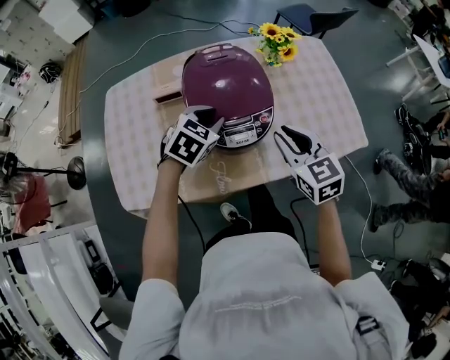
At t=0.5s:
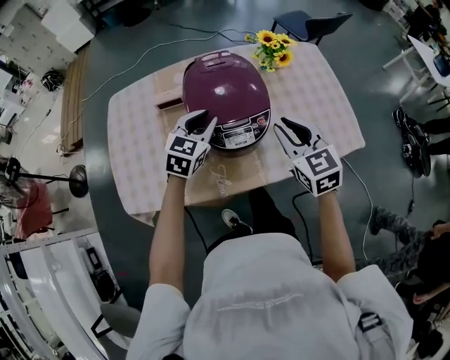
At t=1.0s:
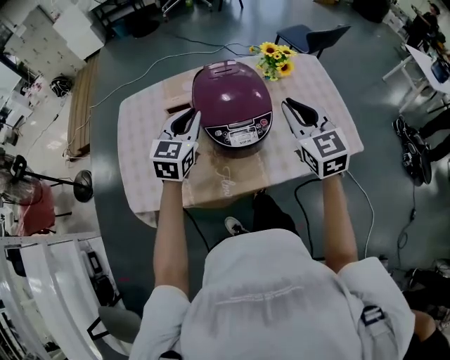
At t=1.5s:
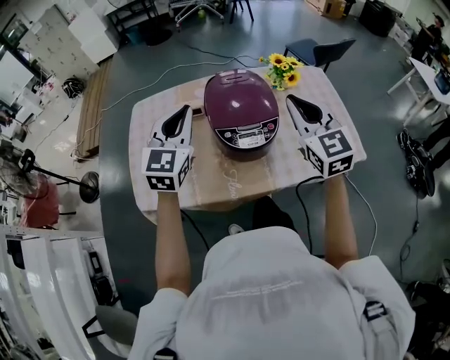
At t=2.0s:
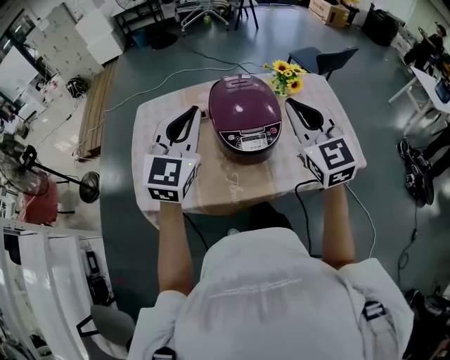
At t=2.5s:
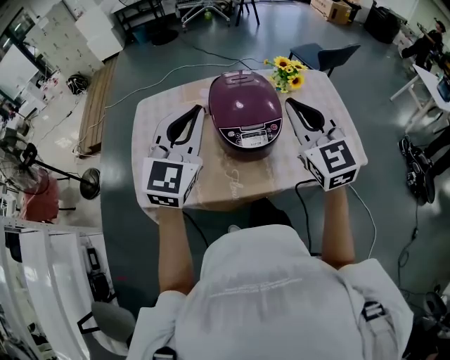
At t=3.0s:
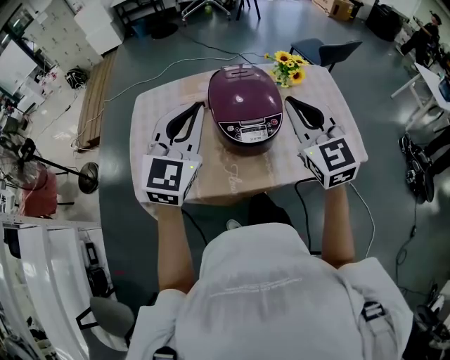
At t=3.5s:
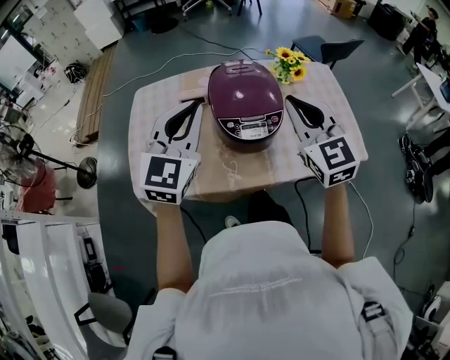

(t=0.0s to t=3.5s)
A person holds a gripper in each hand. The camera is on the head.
t=0.0s - t=2.0s: The grippers both shift upward by approximately 20 cm. The left gripper tilts its fingers some 40 degrees upward, while the right gripper swivels approximately 30 degrees.
t=2.0s - t=3.5s: The grippers stay close to where they were, moving slightly.

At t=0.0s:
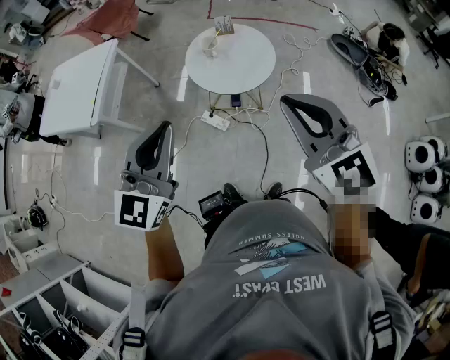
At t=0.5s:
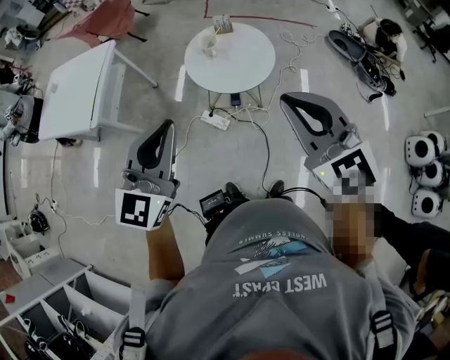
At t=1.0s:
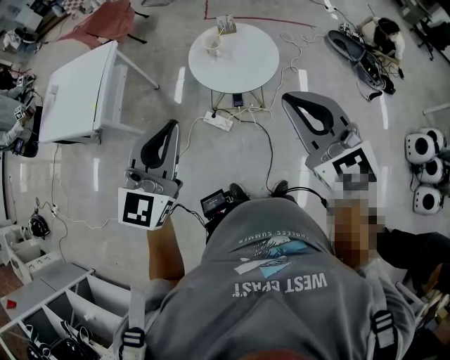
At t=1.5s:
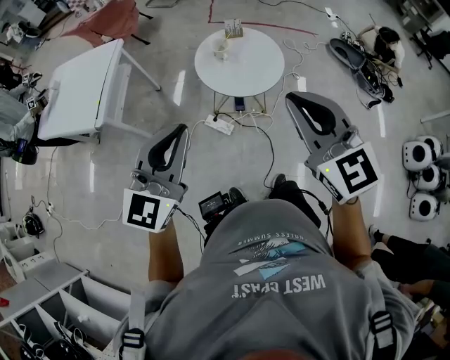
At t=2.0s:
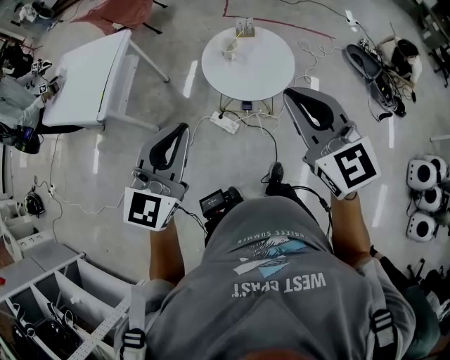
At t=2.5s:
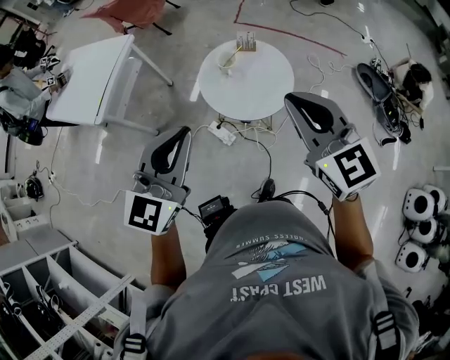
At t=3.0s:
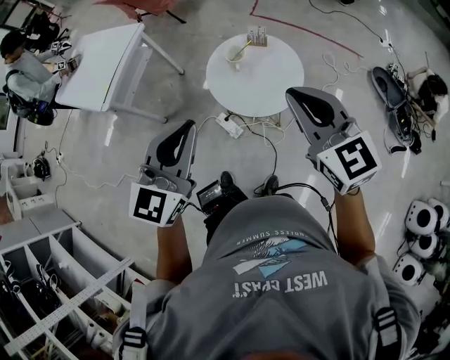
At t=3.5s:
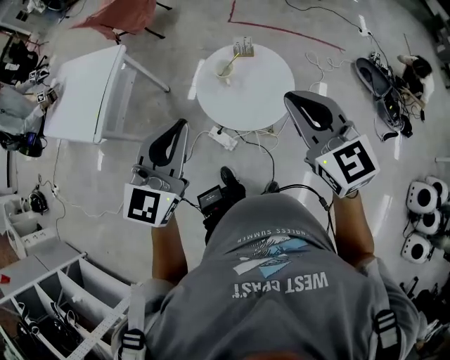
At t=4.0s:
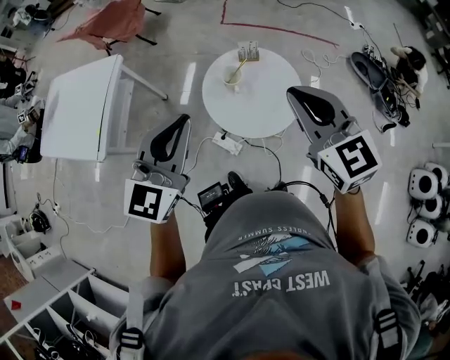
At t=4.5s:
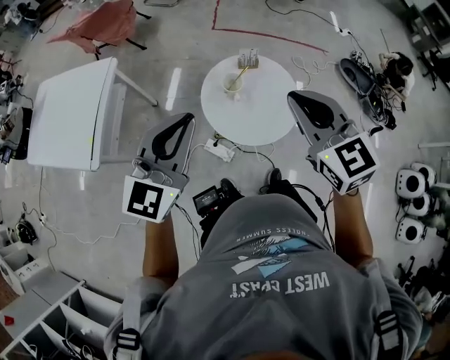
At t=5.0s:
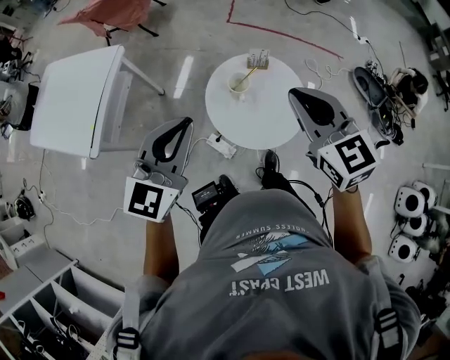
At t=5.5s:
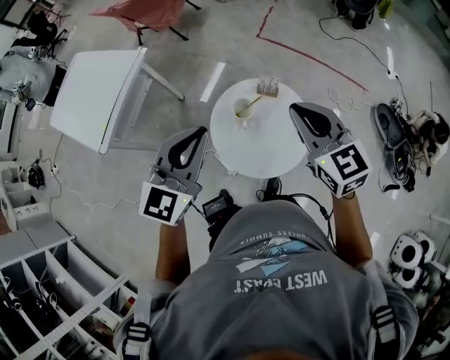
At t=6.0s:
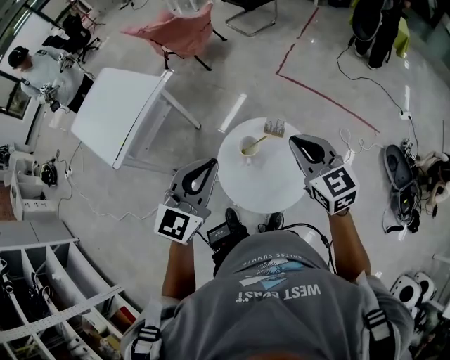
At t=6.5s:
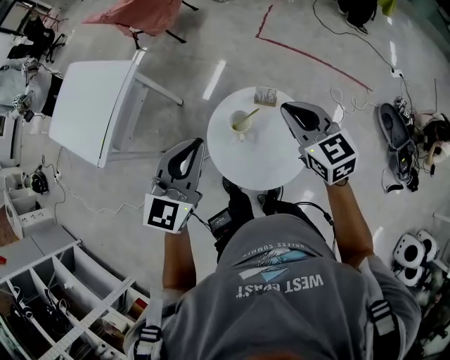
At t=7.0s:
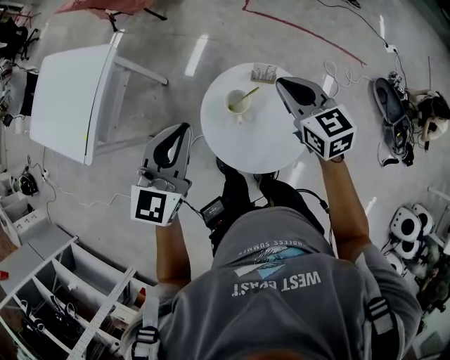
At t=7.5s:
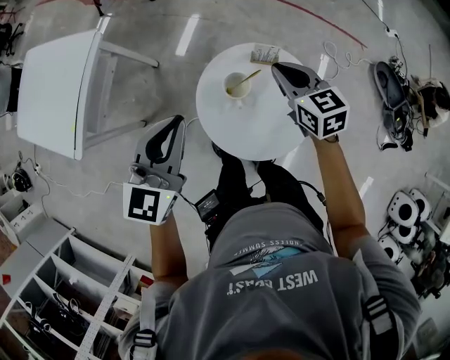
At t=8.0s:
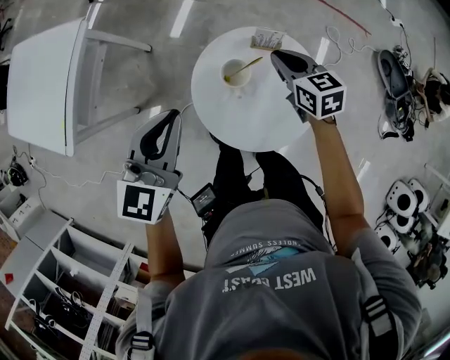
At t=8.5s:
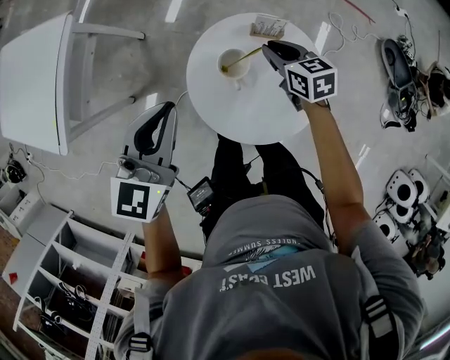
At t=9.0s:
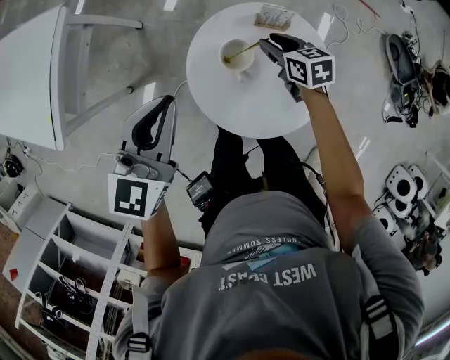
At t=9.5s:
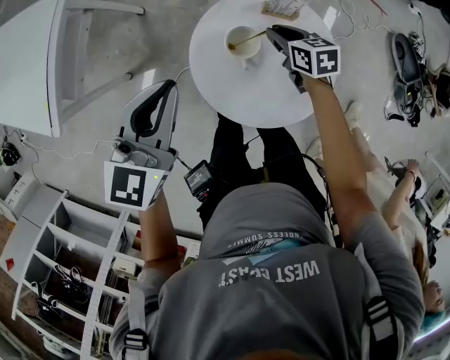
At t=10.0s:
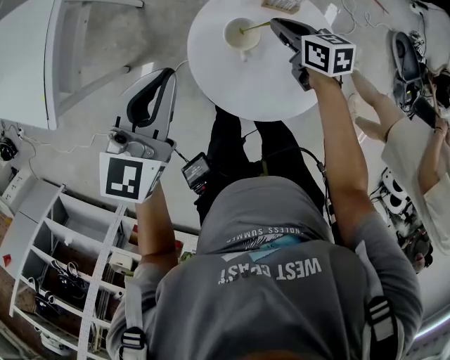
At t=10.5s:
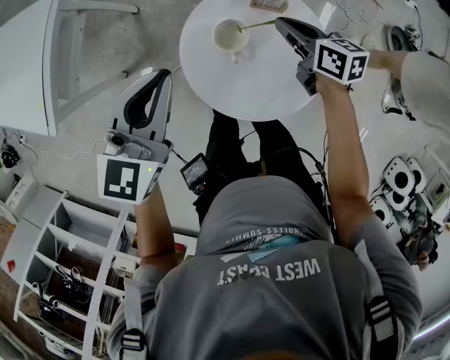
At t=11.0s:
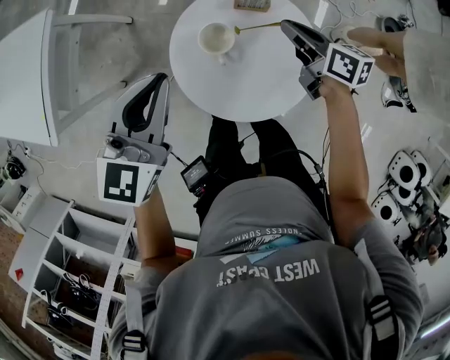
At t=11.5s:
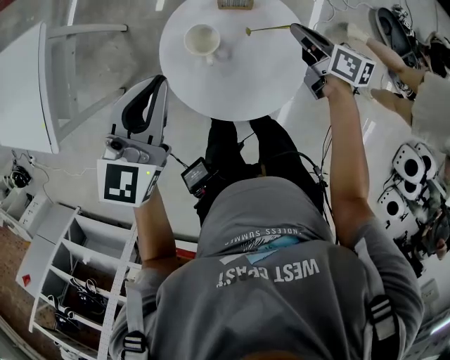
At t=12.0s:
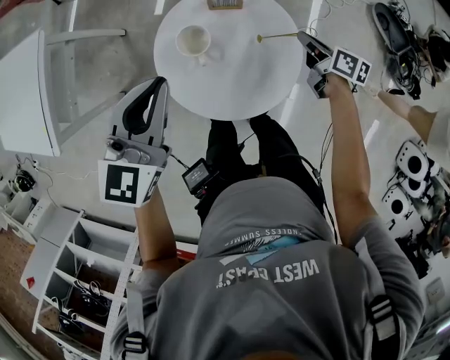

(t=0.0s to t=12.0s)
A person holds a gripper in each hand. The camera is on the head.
t=0.0s - t=2.0s: The right gripper goes some 5 cm forward.
t=2.0s - t=4.0s: Both grippers travel together forward, roughly 20 cm.
t=4.0s - t=6.0s: The right gripper heads forward and downward, covering approximately 20 cm, and rotates approximately 20 degrees; the left gripper travels forward and to the right by approximately 15 cm.
t=6.0s - t=8.0s: The left gripper moves downward and to the left, roughly 10 cm, while the right gripper goes some 20 cm downward and forward, and swivels approximately 30 degrees.
t=8.0s - t=10.0s: The right gripper shifts some 5 cm downward, and opens, then closes once more.
t=10.0s - t=12.0s: The right gripper travels to the right by approximately 20 cm, and turns by approximately 30 degrees, while the left gripper is displaced to the right by approximately 5 cm.

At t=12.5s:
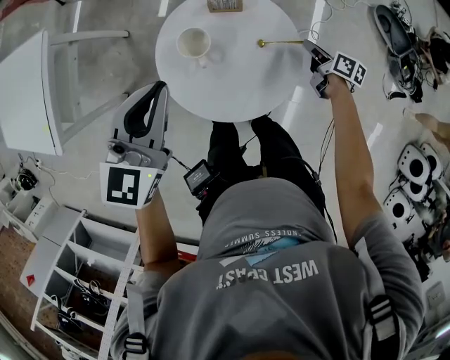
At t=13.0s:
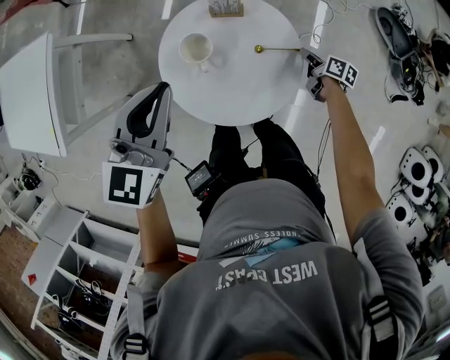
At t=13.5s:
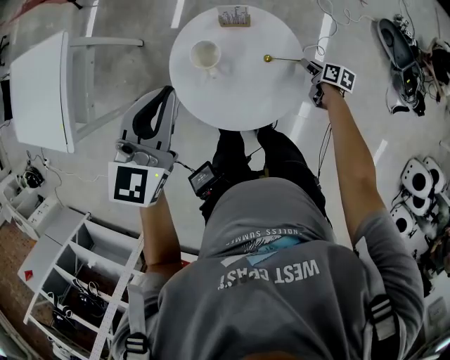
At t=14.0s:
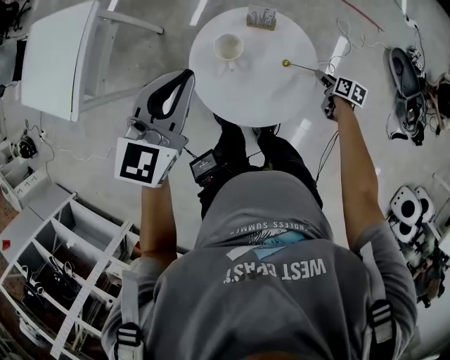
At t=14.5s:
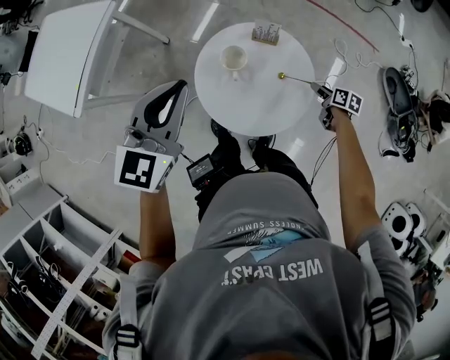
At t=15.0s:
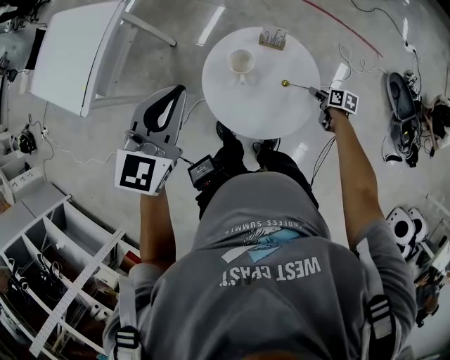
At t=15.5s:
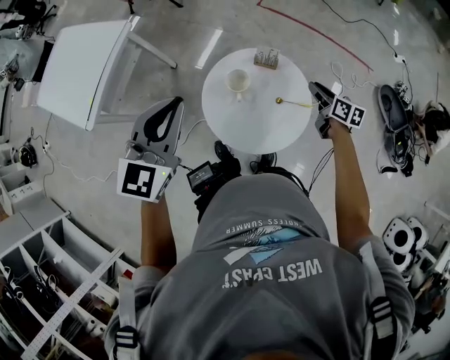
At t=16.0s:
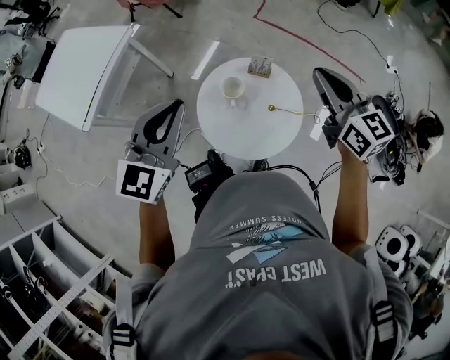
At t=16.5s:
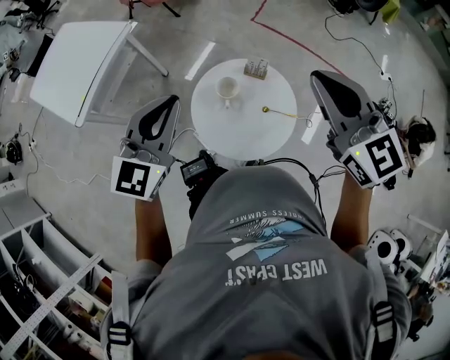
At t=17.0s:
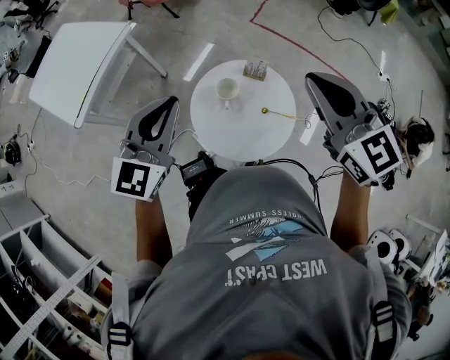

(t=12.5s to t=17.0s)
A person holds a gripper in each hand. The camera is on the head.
t=12.5s - t=14.5s: The left gripper moves upward, about 5 cm. Meanwhile the right gripper swivels about 20 degrees, and opens up.
t=14.5s - t=17.0s: The right gripper is displaced upward by some 50 cm, rotates around the line of its fingers by approximately 70 degrees, counterclockwise from behind, and closes up.

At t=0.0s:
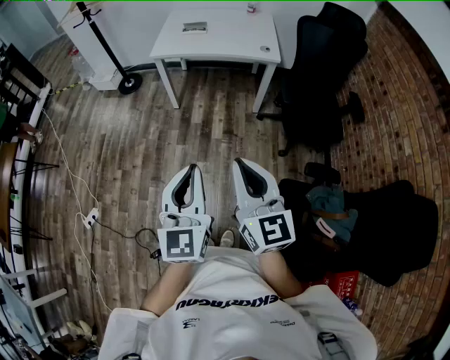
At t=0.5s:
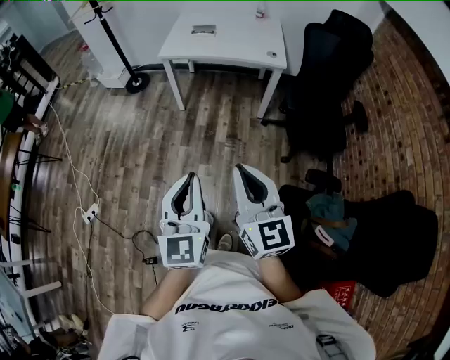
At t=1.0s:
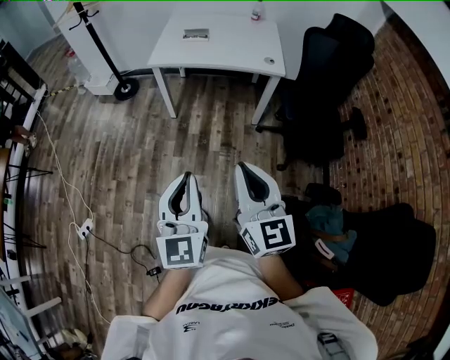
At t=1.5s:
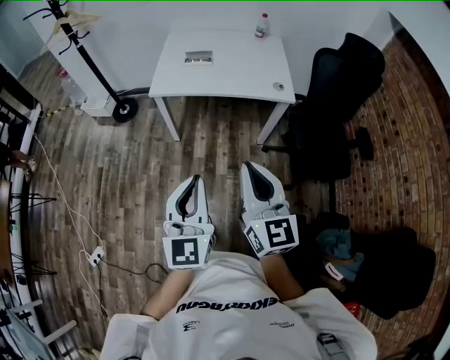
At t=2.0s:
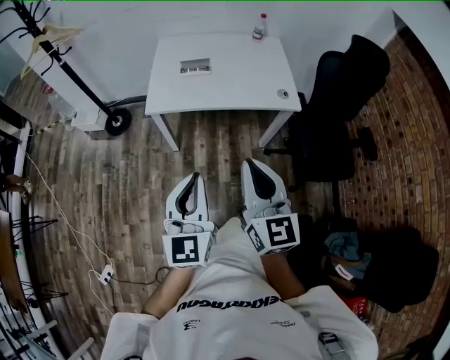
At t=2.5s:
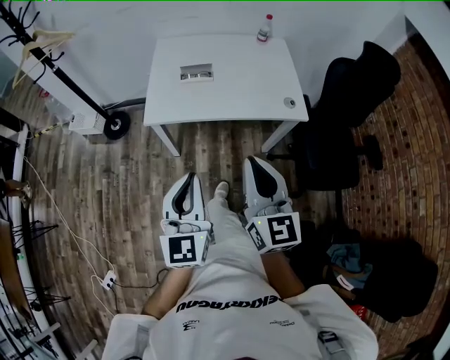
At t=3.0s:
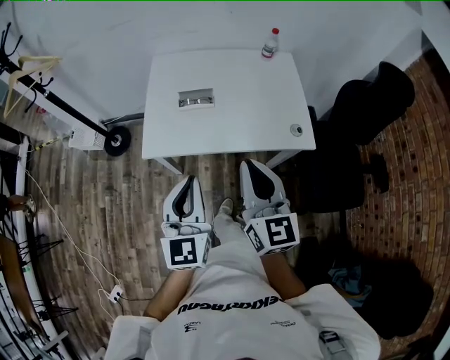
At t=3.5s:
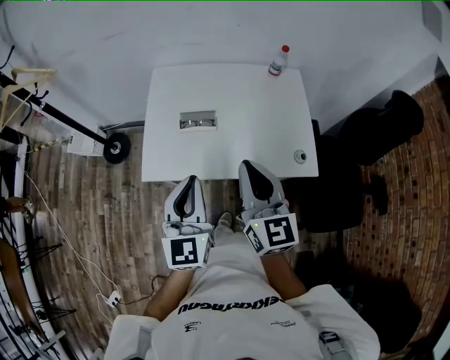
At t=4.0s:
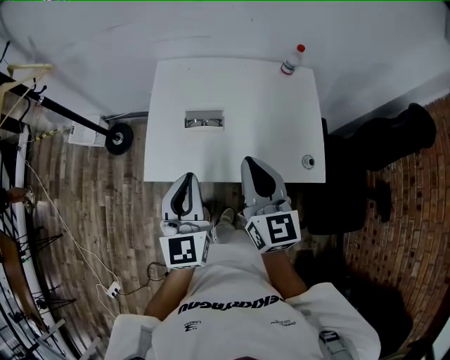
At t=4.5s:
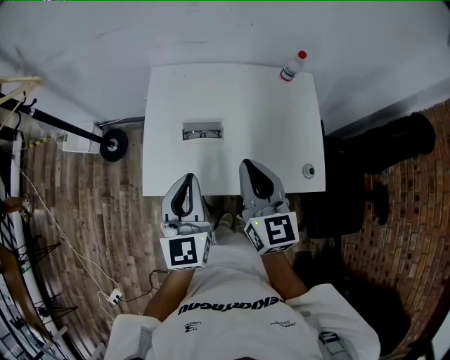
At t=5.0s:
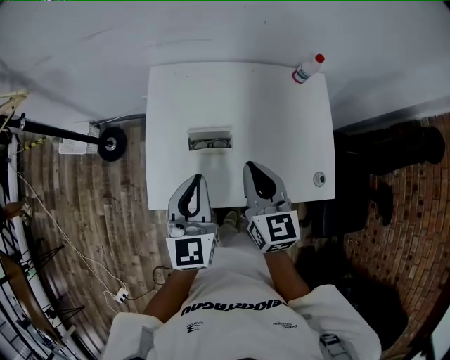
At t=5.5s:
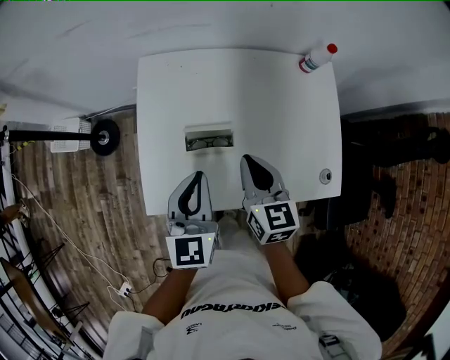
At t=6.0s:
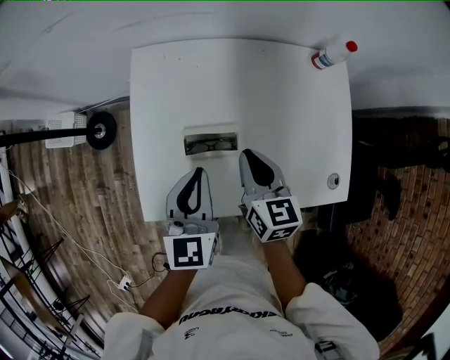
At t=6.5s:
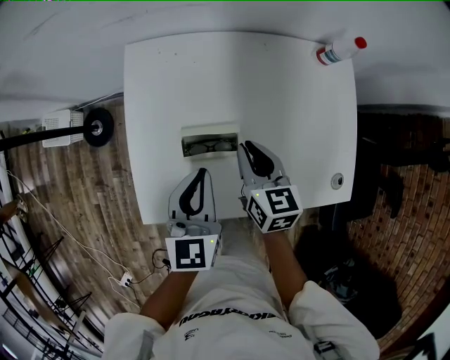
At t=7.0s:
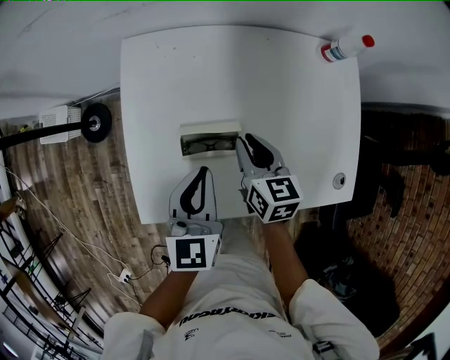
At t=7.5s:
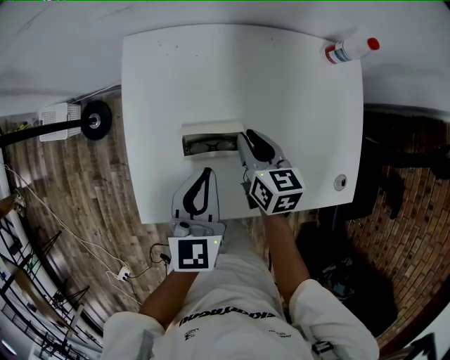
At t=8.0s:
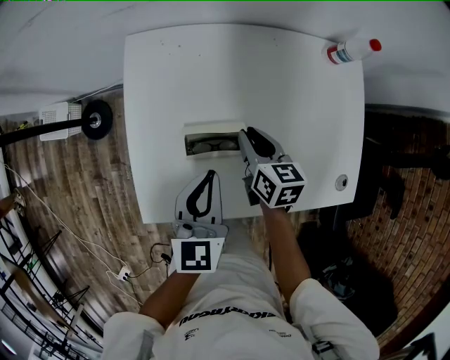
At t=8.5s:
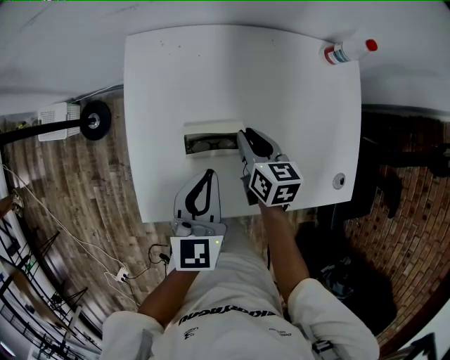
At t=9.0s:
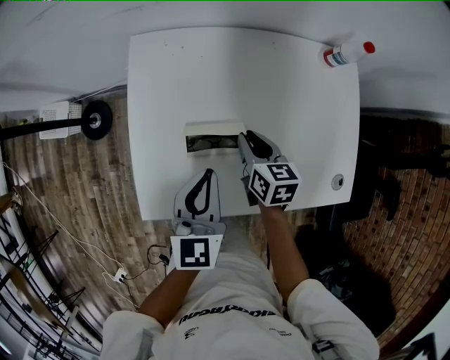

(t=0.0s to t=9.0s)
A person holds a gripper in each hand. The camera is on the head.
t=0.0s - t=2.0s: The pair of grippers is taken forward, some 40 cm.
t=2.0s - t=4.5s: Both grippers are carried forward, roughly 50 cm.
t=4.5s - t=7.0s: Both grippers travel together downward and forward, roughly 30 cm. The right gripper rotates about 30 degrees.
t=7.0s - t=9.0s: There are only small adjustments of the grippers.
